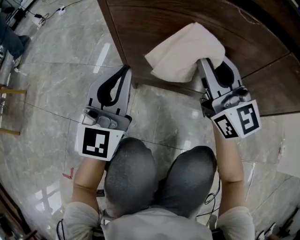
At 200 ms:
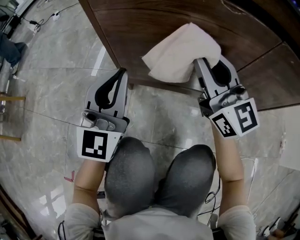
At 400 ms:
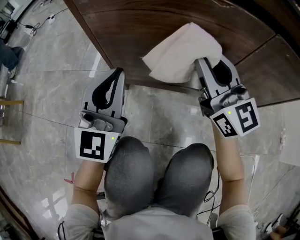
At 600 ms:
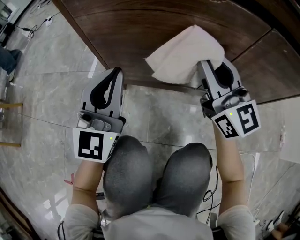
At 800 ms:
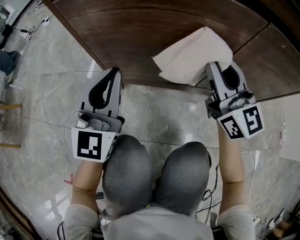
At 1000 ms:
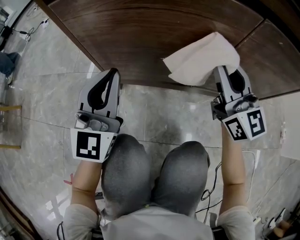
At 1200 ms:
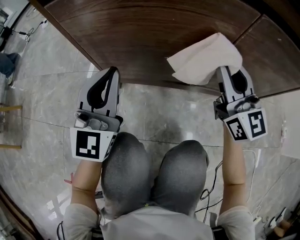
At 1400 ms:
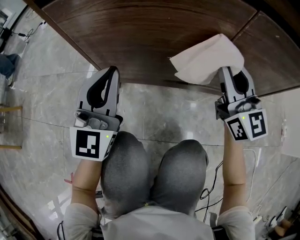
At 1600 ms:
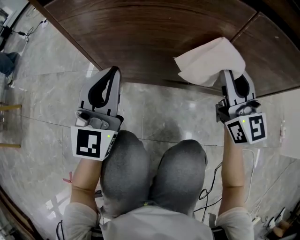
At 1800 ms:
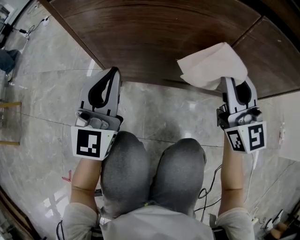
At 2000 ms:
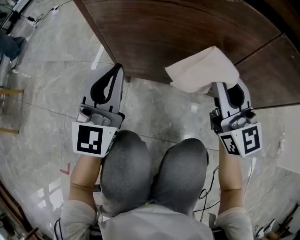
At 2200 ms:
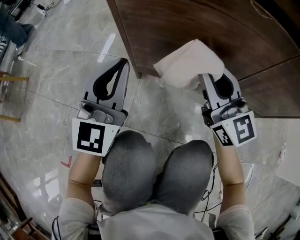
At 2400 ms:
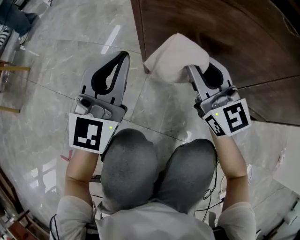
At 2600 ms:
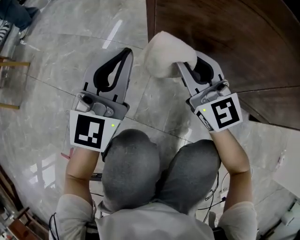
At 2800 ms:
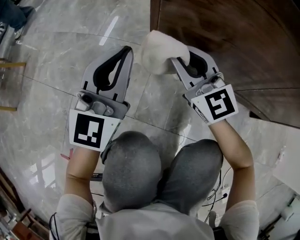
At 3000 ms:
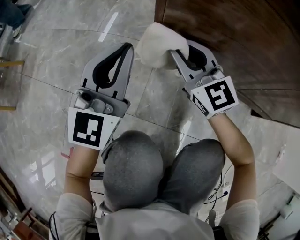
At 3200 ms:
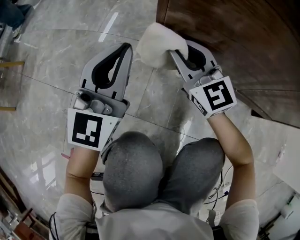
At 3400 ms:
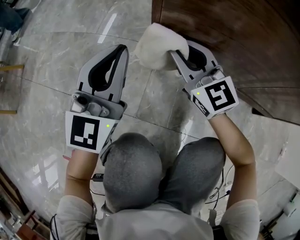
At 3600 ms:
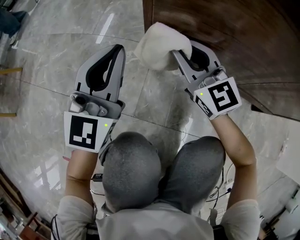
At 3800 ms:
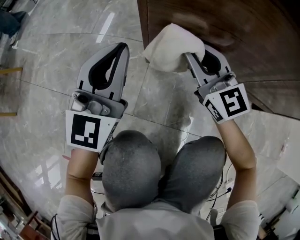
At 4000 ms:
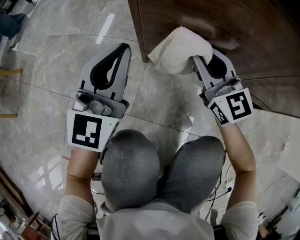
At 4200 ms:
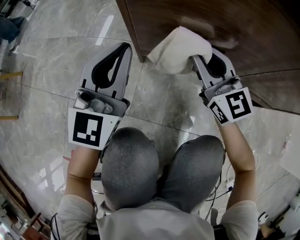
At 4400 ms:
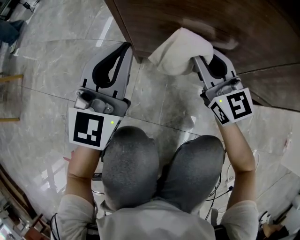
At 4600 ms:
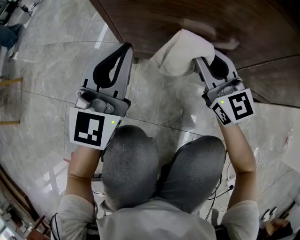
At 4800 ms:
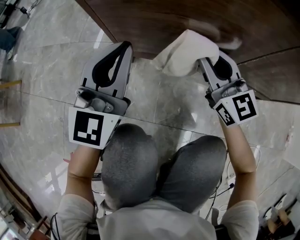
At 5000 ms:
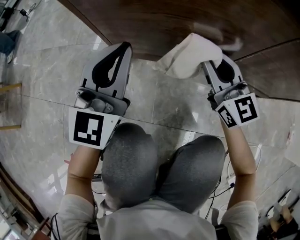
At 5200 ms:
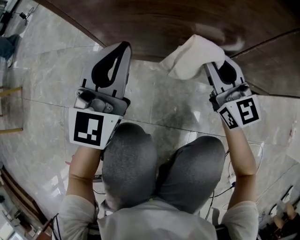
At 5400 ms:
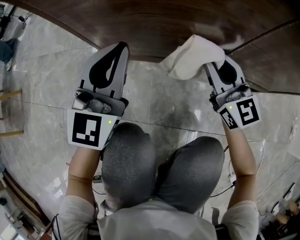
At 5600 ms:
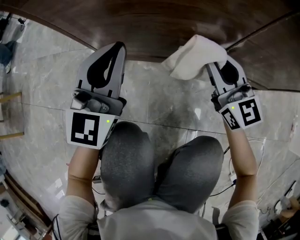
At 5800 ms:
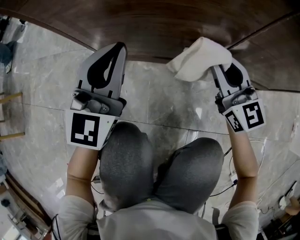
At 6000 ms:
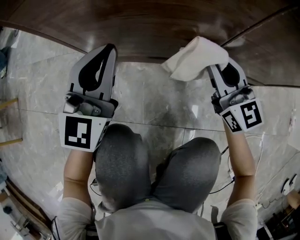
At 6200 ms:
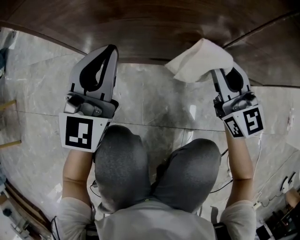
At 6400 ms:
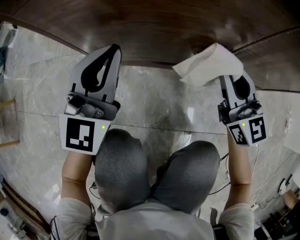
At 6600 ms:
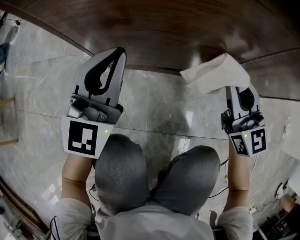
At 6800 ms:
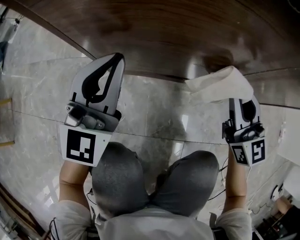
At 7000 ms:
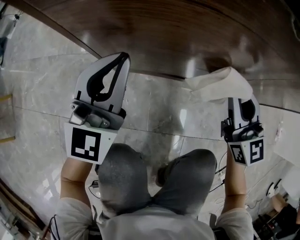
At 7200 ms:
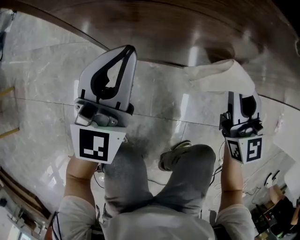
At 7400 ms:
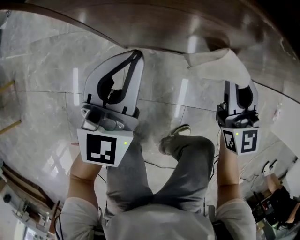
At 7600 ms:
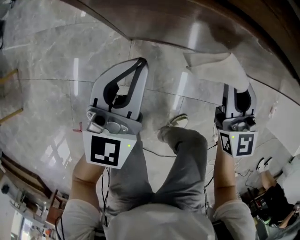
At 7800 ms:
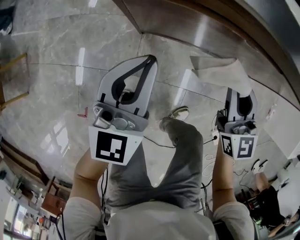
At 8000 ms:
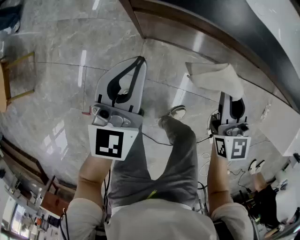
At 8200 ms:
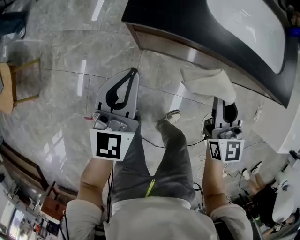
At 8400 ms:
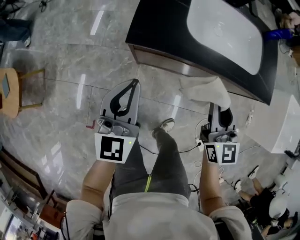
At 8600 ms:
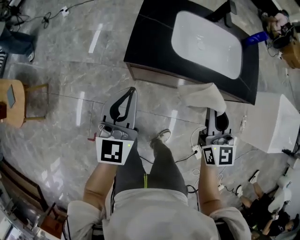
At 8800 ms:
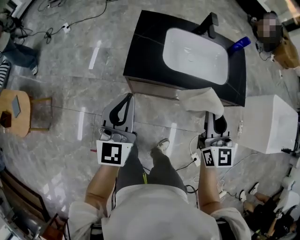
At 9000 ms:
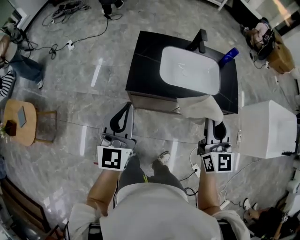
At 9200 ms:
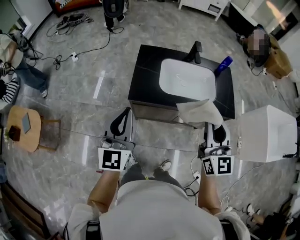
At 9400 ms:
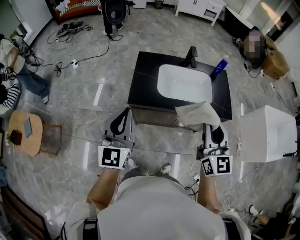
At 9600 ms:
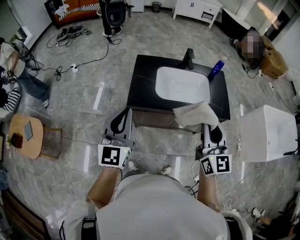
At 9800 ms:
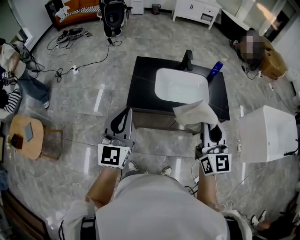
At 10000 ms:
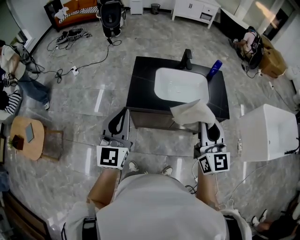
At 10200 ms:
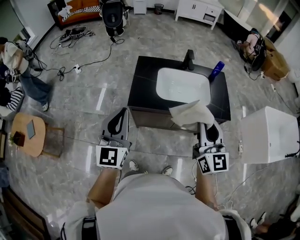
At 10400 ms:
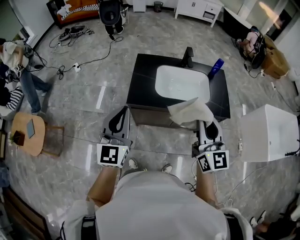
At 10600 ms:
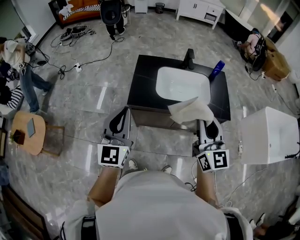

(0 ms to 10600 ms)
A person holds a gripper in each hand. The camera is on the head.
0 ms - 1600 ms: The right gripper travels to the right by about 20 cm. Meanwhile the left gripper moves to the right, approximately 10 cm.
1600 ms - 3000 ms: The left gripper is displaced to the left by some 20 cm. The right gripper moves to the left and downward, roughly 35 cm, and turns by about 30 degrees.
3000 ms - 4600 ms: The right gripper travels to the right by about 15 cm. Meanwhile the left gripper shifts roughly 10 cm to the right.
4600 ms - 6000 ms: The right gripper shifts about 15 cm to the right. The left gripper goes about 10 cm to the right.
6000 ms - 7600 ms: Both grippers travel together upward and to the left, some 20 cm.
7600 ms - 9000 ms: The grippers both shift upward by about 60 cm.
9000 ms - 10600 ms: The two grippers go some 10 cm upward and backward.

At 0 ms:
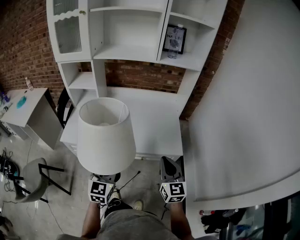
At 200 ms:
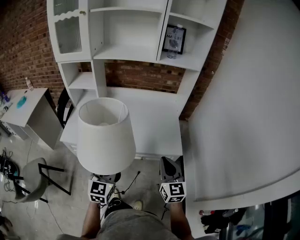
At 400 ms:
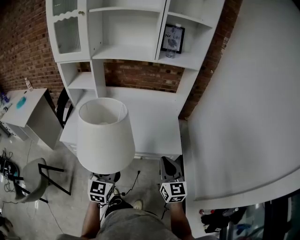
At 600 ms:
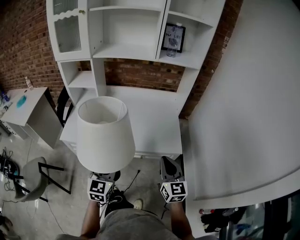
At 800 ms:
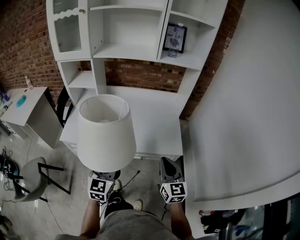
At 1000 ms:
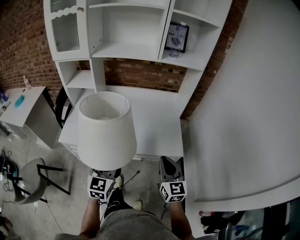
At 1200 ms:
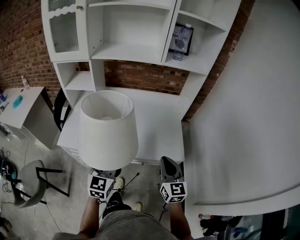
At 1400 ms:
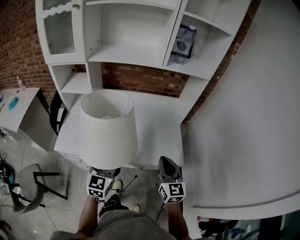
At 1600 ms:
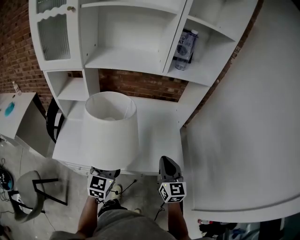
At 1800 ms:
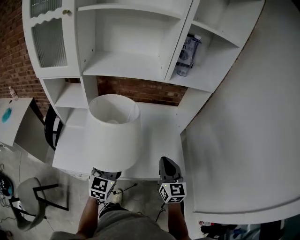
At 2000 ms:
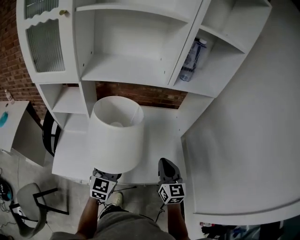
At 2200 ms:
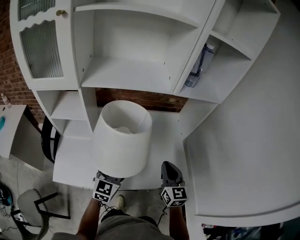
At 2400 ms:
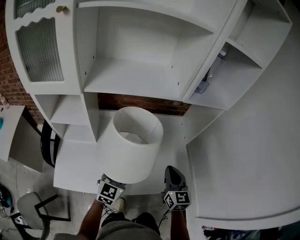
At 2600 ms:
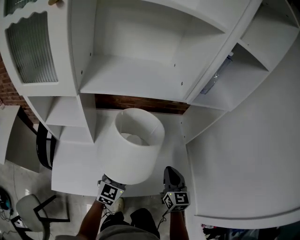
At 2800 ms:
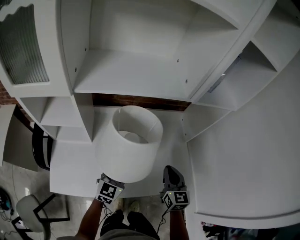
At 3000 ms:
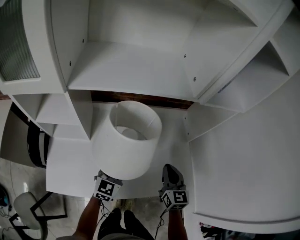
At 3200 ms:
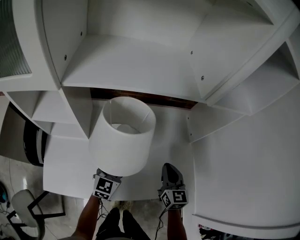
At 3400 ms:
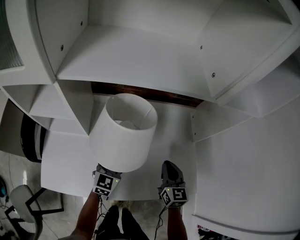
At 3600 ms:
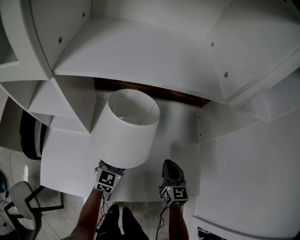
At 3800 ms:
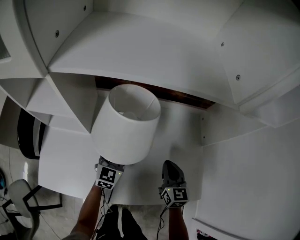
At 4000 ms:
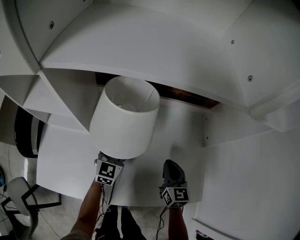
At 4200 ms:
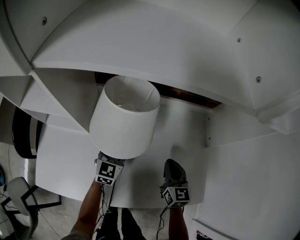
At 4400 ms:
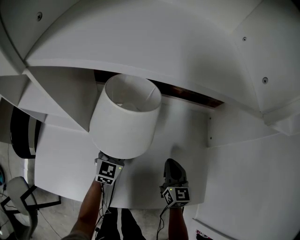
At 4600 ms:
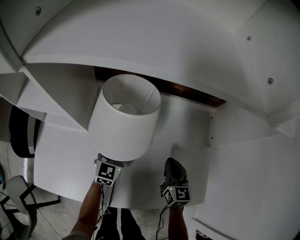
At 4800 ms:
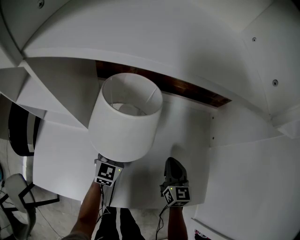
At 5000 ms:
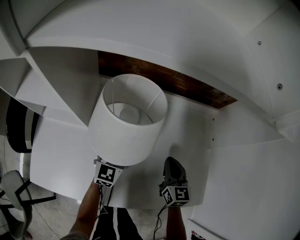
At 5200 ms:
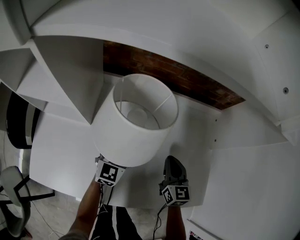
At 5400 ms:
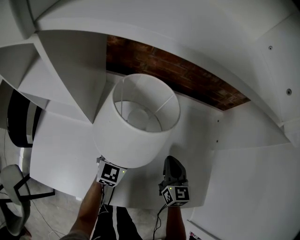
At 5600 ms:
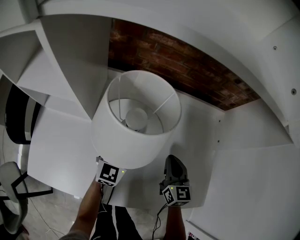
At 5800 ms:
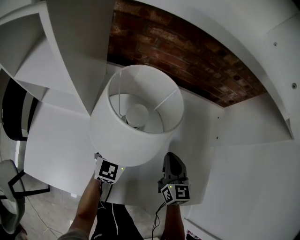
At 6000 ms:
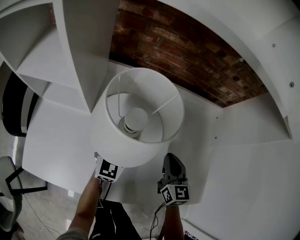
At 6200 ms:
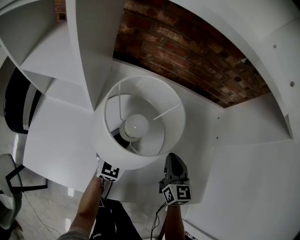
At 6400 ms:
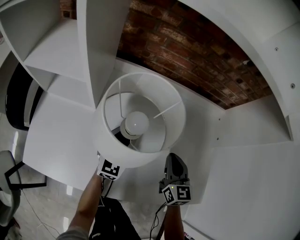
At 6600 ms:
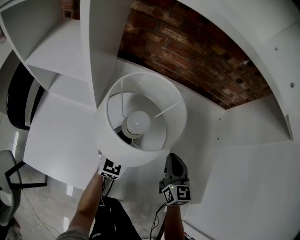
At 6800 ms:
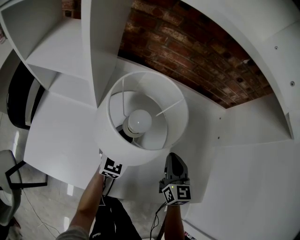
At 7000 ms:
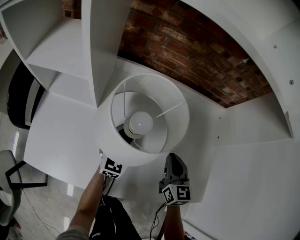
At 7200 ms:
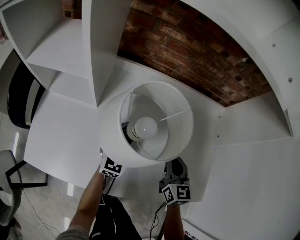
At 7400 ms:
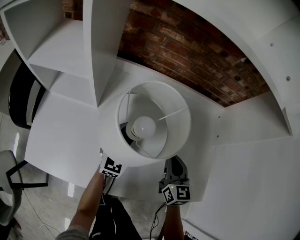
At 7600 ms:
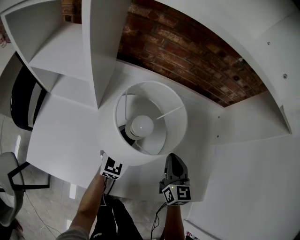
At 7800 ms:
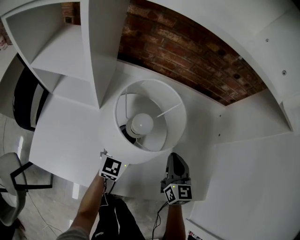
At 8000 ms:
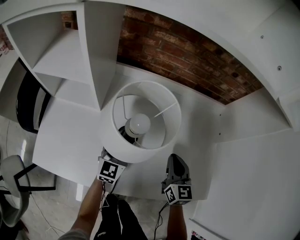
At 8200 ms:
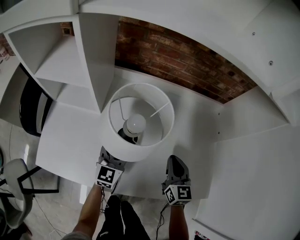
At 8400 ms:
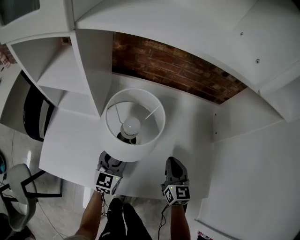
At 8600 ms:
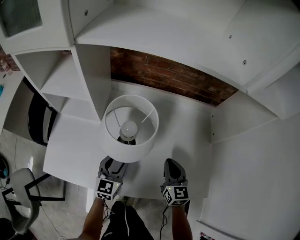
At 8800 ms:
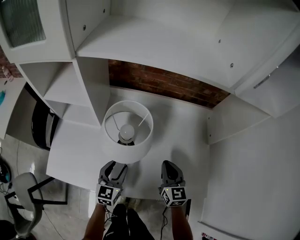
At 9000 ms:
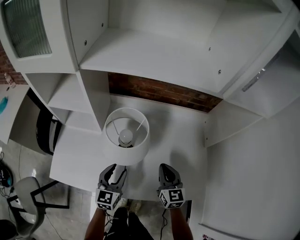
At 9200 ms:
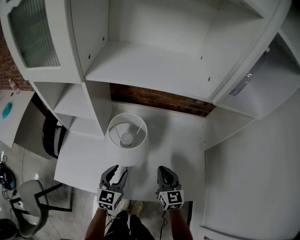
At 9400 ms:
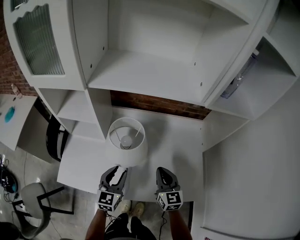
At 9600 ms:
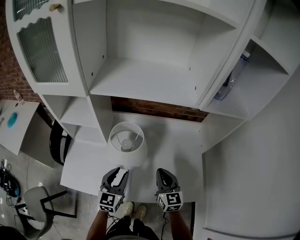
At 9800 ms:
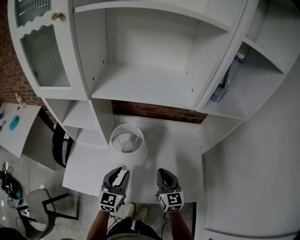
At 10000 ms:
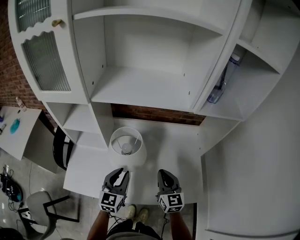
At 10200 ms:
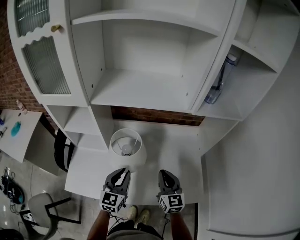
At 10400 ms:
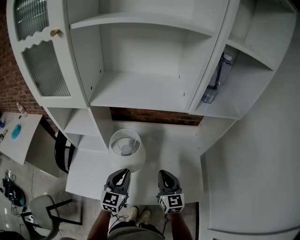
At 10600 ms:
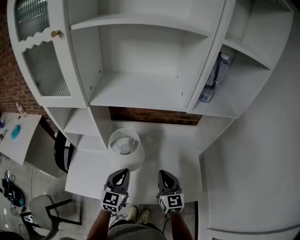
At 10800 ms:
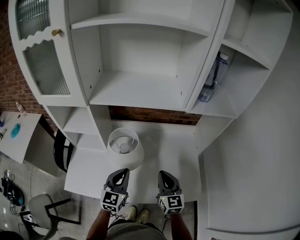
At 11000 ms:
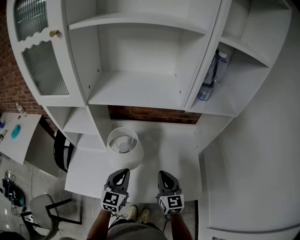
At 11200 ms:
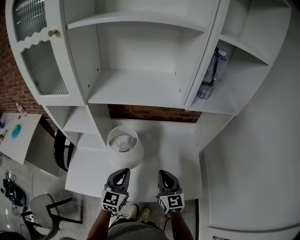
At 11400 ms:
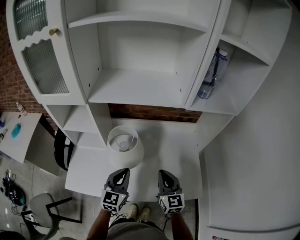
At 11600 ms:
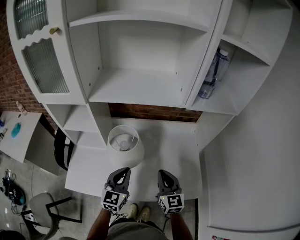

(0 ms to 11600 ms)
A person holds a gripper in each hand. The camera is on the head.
0 ms - 1400 ms: Both grippers travel together forward, some 10 cm.
1400 ms - 2800 ms: The left gripper is displaced forward by approximately 25 cm. Meanwhile the right gripper shifts roughly 20 cm forward and to the left.
2800 ms - 4400 ms: Both grippers move downward and forward, about 20 cm.
4400 ms - 7200 ms: The grippers move only a little.
7200 ms - 8800 ms: The right gripper changes place by about 5 cm; the left gripper moves backward, about 15 cm.
8800 ms - 10200 ms: The grippers both shift upward by some 15 cm. The left gripper closes its fingers.
10200 ms - 11600 ms: The grippers make only small movements.

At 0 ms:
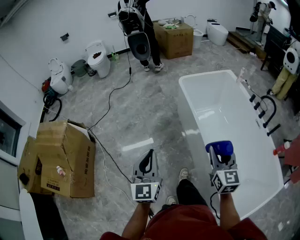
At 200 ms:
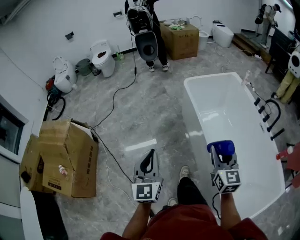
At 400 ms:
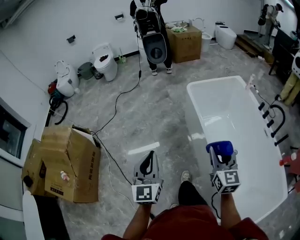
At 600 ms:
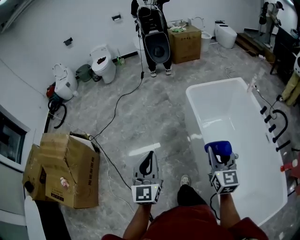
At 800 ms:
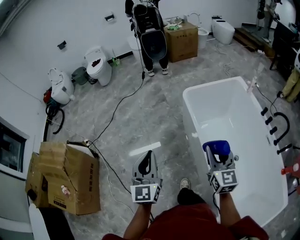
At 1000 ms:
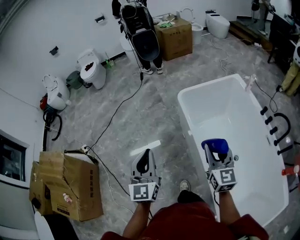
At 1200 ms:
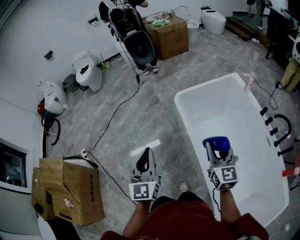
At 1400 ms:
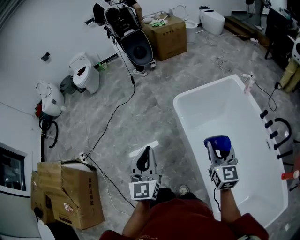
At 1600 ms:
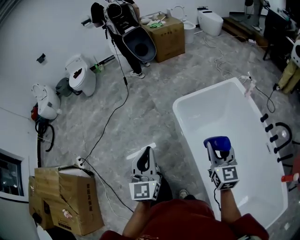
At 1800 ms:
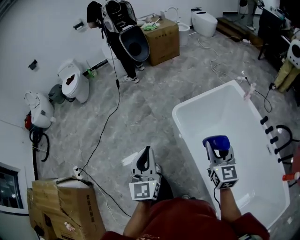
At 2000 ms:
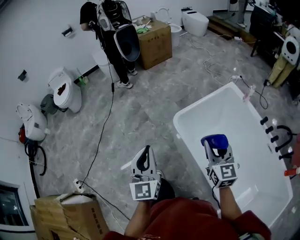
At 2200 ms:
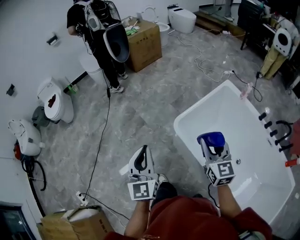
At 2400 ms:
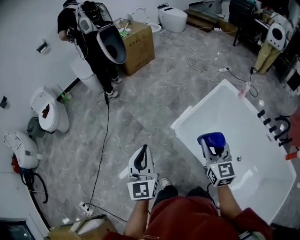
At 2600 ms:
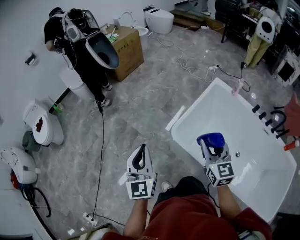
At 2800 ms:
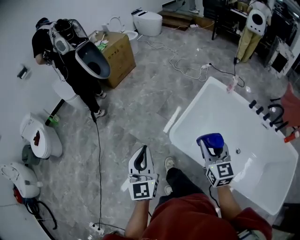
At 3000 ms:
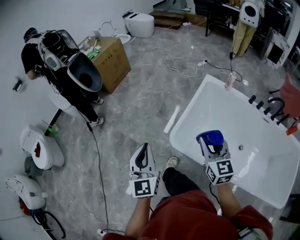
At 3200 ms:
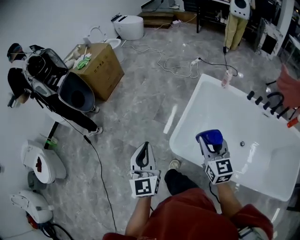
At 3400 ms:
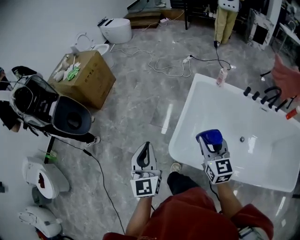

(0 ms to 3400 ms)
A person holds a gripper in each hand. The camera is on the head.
0 ms - 1600 ms: The two grippers travel together, forward, some 50 cm.
1600 ms - 3400 ms: The right gripper changes place by roughly 35 cm, and swivels some 40 degrees; the left gripper moves some 50 cm, and turns by roughly 40 degrees.
